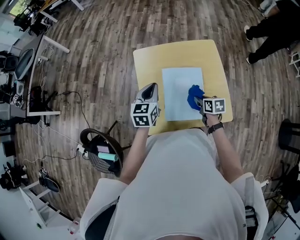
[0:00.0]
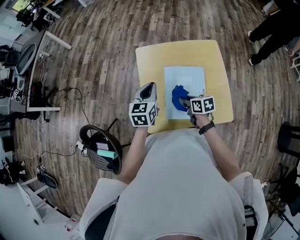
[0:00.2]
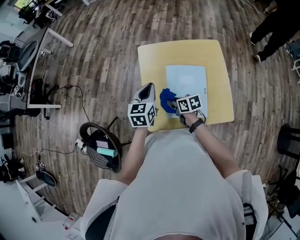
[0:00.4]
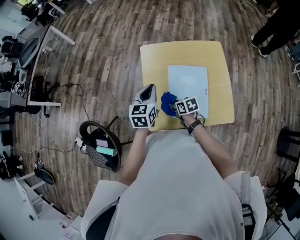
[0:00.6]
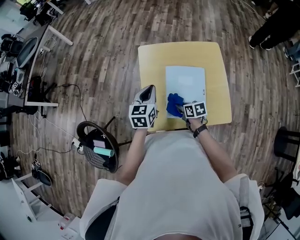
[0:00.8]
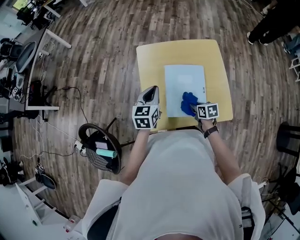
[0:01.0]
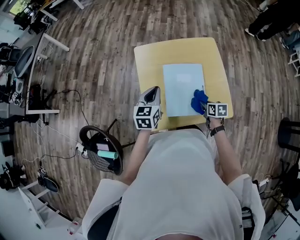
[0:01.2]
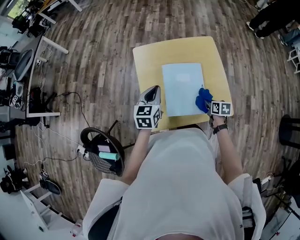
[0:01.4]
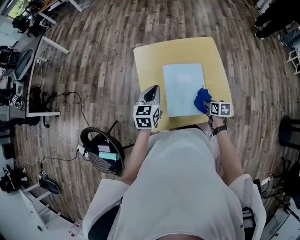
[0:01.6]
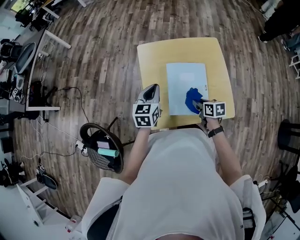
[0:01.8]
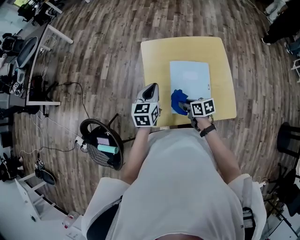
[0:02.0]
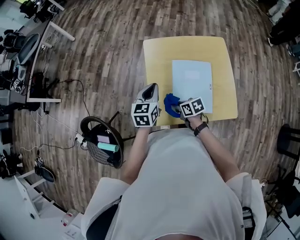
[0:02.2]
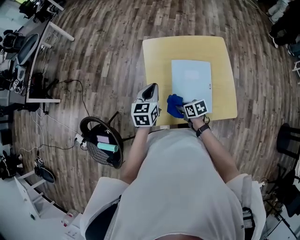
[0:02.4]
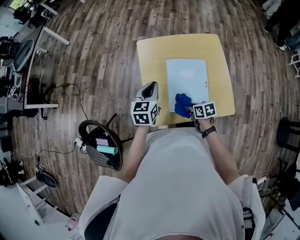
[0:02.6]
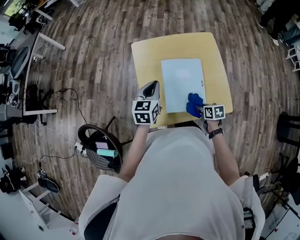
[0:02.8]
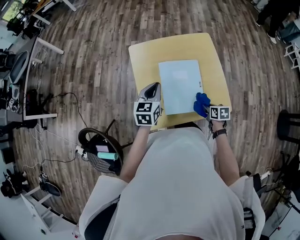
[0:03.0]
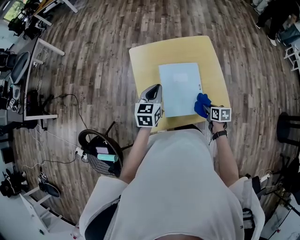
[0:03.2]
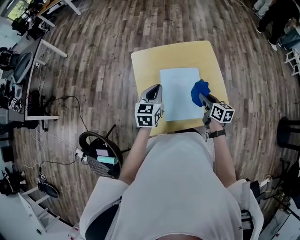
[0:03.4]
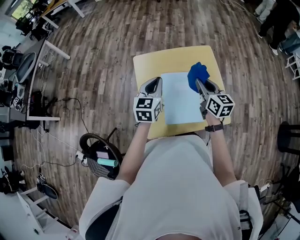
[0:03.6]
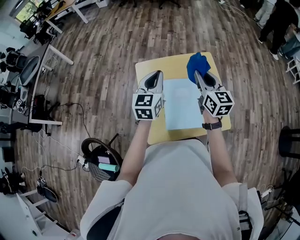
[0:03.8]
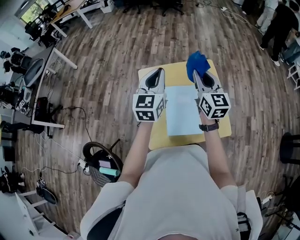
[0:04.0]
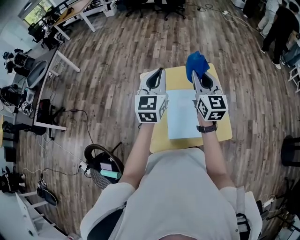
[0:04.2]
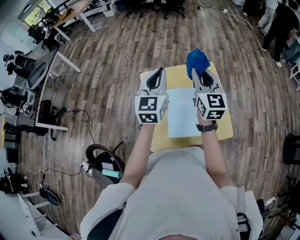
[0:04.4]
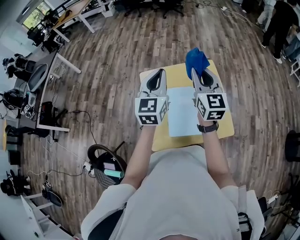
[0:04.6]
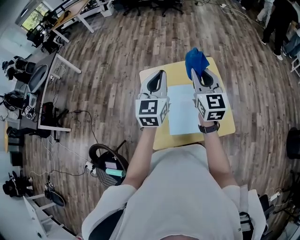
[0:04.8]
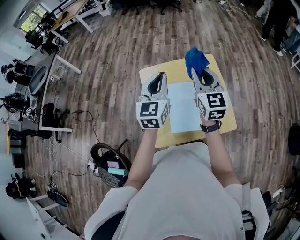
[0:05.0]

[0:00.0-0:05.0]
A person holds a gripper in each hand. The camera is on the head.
0:00.0 to 0:01.6: The right gripper travels backward by roughly 5 cm, and moves approximately 20 cm to the left and comes back.
0:01.6 to 0:03.4: The right gripper moves upward, some 10 cm, and rotates approximately 30 degrees.
0:03.4 to 0:05.0: The grippers both shift upward by roughly 20 cm. The right gripper turns by some 40 degrees. Meanwhile the left gripper changes its angle by about 20 degrees.

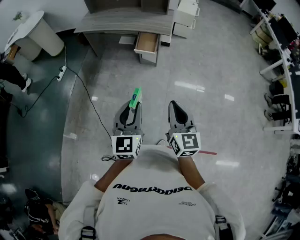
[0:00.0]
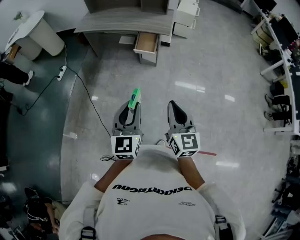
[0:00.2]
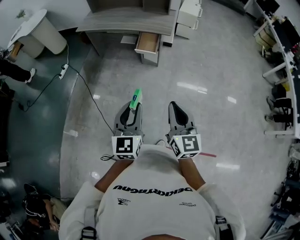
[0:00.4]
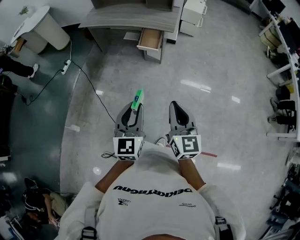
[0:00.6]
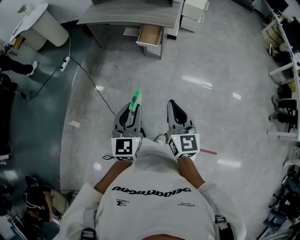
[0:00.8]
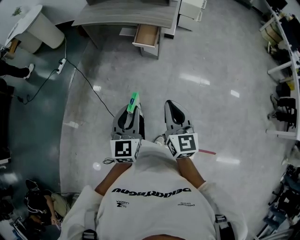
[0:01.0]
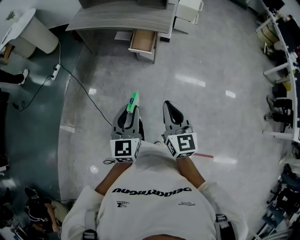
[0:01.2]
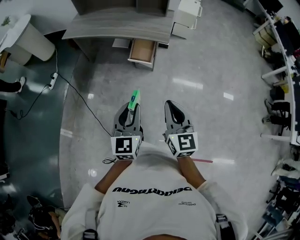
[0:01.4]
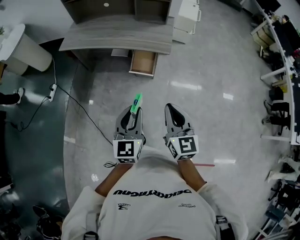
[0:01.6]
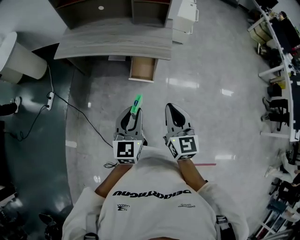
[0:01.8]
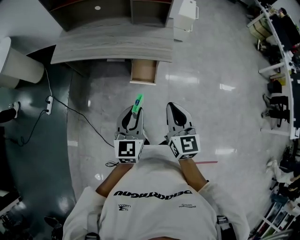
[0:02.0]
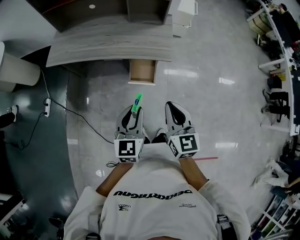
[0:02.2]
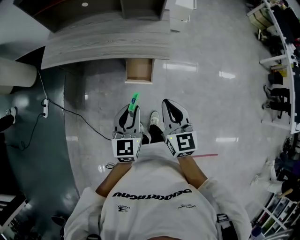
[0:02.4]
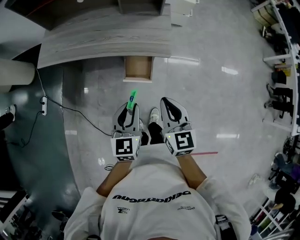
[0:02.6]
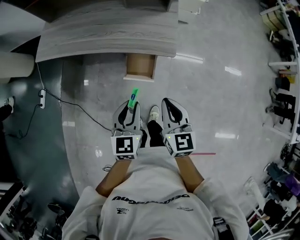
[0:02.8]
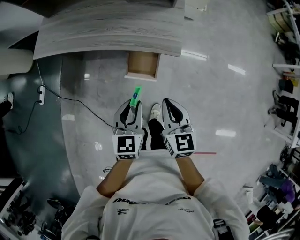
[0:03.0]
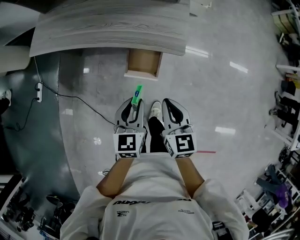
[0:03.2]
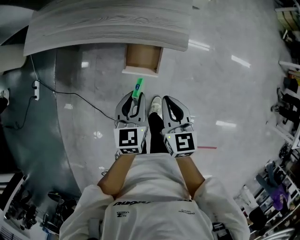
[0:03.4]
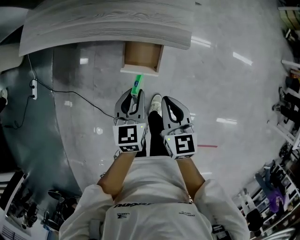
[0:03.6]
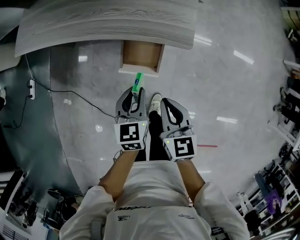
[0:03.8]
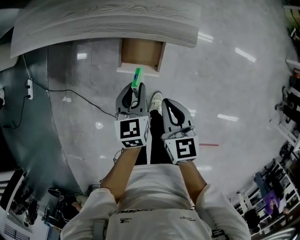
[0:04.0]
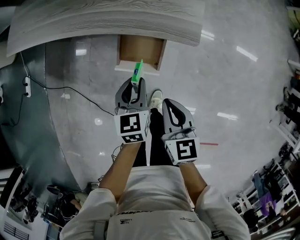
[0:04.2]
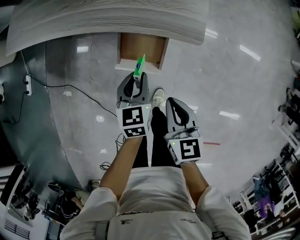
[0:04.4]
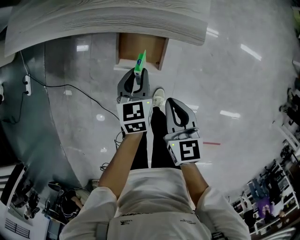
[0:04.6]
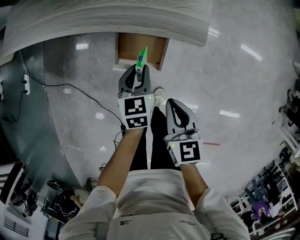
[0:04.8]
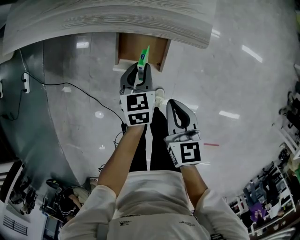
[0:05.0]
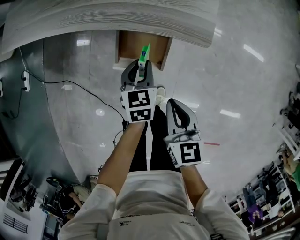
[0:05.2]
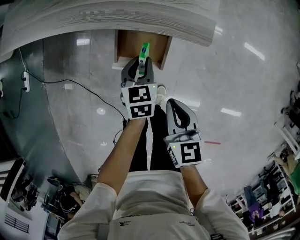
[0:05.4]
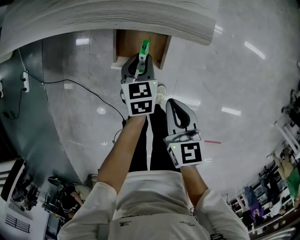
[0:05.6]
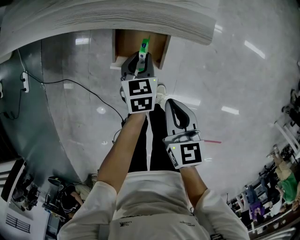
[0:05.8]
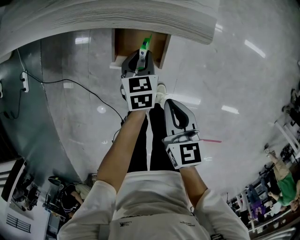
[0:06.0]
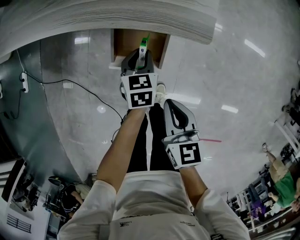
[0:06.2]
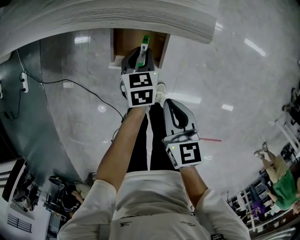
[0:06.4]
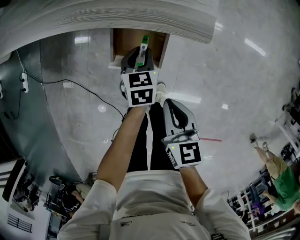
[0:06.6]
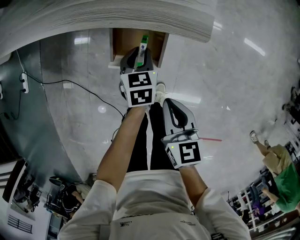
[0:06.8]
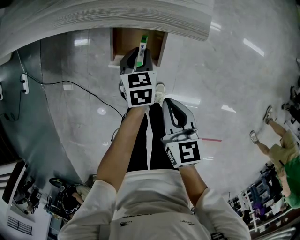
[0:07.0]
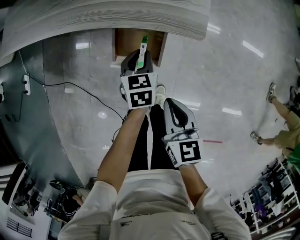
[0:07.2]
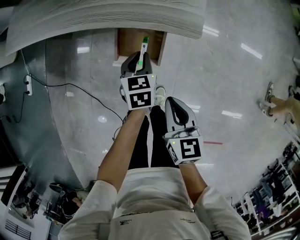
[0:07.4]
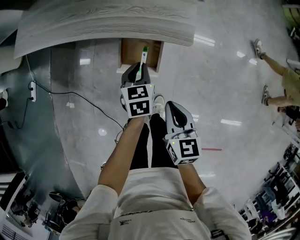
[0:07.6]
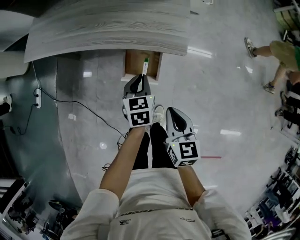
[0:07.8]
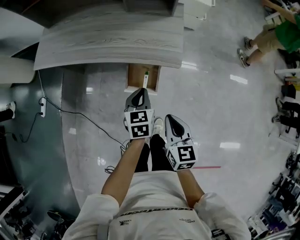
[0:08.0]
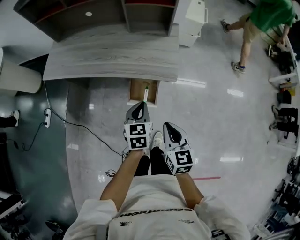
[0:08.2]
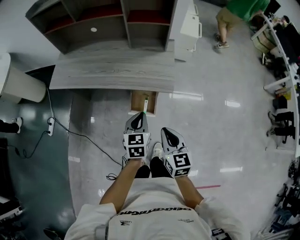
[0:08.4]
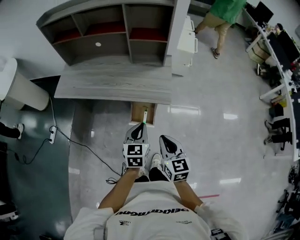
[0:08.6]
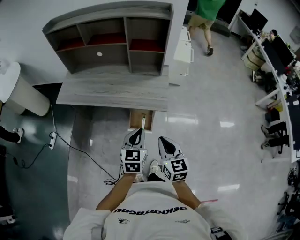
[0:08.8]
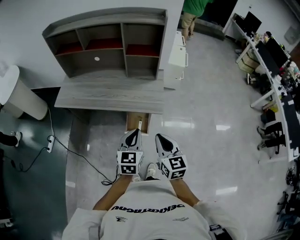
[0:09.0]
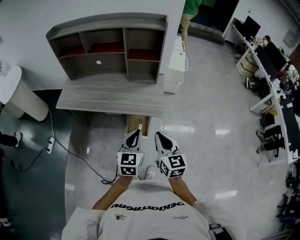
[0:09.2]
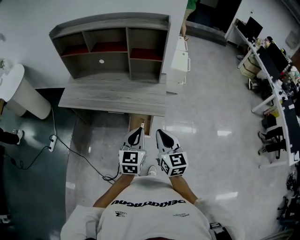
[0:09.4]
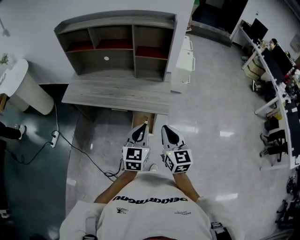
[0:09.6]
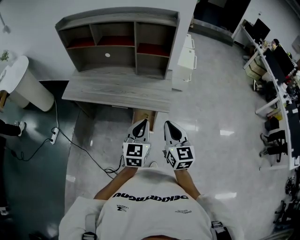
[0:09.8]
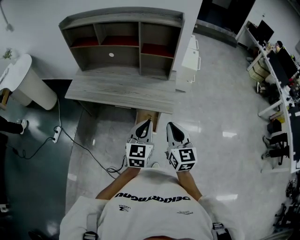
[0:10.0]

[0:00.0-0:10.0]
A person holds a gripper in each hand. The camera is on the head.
0:00.0 to 0:01.4: Both grippers move forward, approximately 20 cm.
0:01.4 to 0:02.8: Both grippers travel together forward, some 35 cm.
0:02.8 to 0:04.2: The left gripper shifts roughly 25 cm downward and forward. Meanwhile the right gripper moves downward, roughly 20 cm.
0:04.2 to 0:05.8: The right gripper goes roughly 5 cm downward; the left gripper goes about 15 cm downward and forward.
0:05.8 to 0:07.2: The grippers move only a little.
0:07.2 to 0:08.6: The right gripper heads upward, covering roughly 30 cm. The left gripper heads upward and backward, covering approximately 40 cm, and turns by about 20 degrees.
0:08.6 to 0:10.0: Both grippers travel together upward, about 10 cm.
